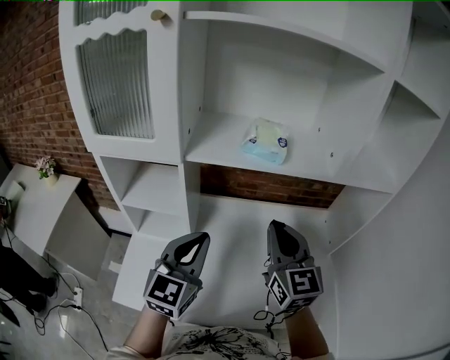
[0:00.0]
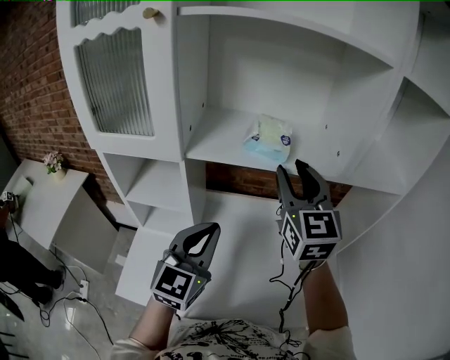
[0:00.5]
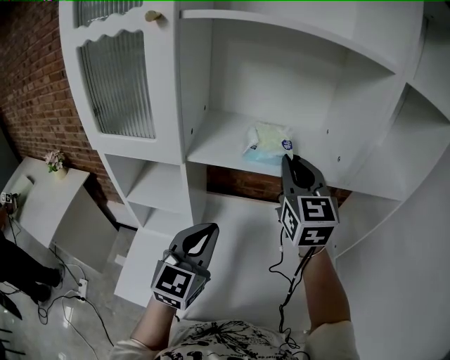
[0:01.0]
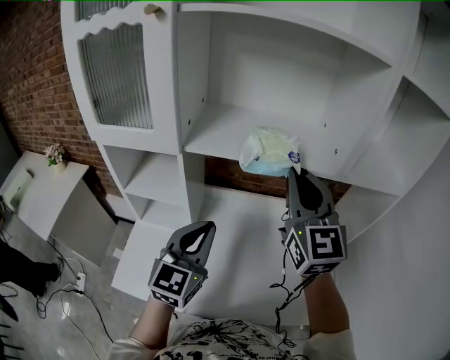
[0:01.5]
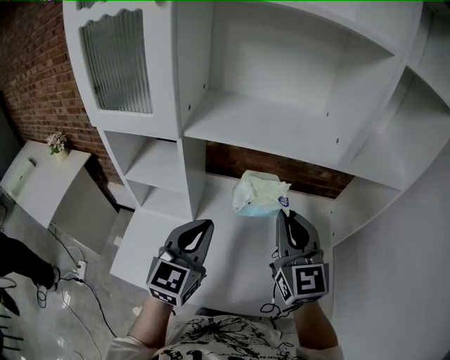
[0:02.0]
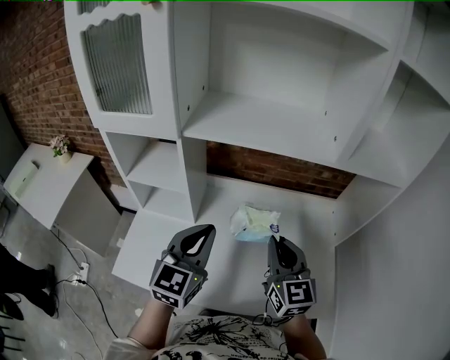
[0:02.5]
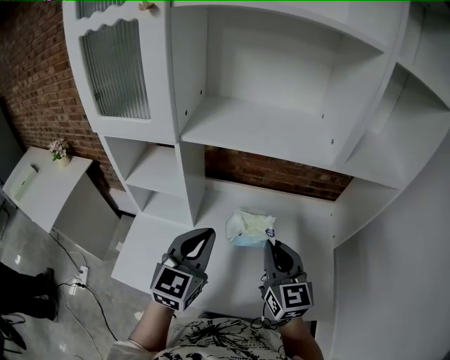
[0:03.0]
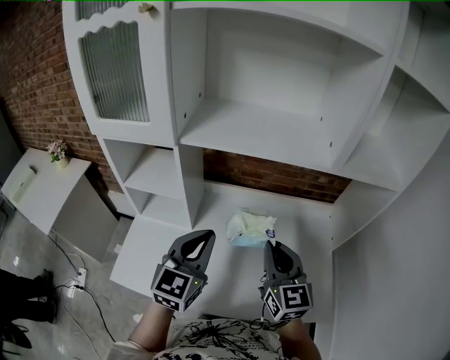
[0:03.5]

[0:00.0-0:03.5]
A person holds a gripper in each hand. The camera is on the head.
0.0 to 2.0 s: The right gripper goes forward and returns, roughly 10 cm each way, and opens and closes again.
2.0 to 3.5 s: The right gripper heads downward, covering roughly 10 cm.

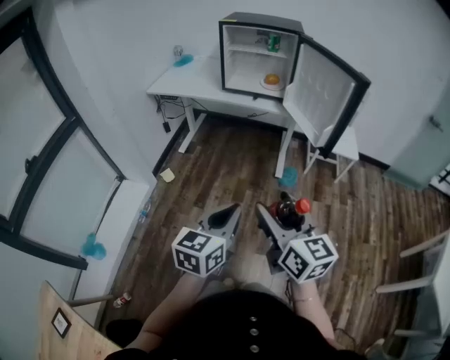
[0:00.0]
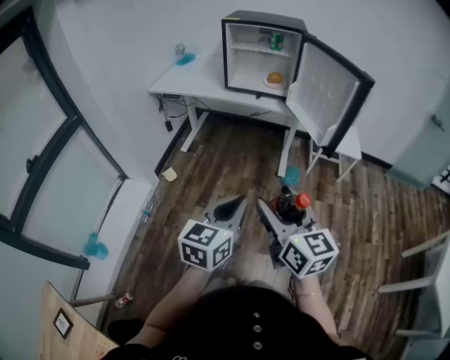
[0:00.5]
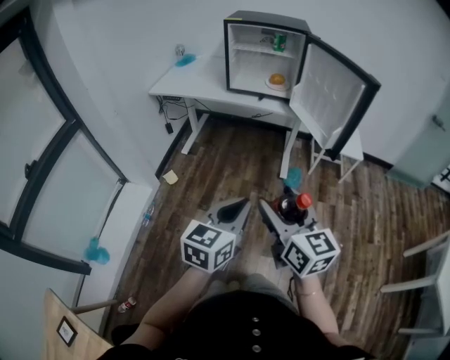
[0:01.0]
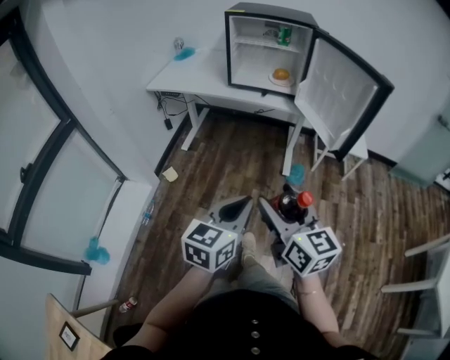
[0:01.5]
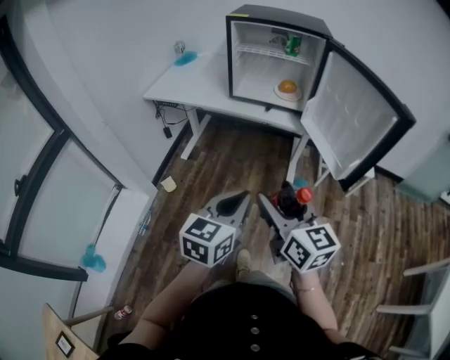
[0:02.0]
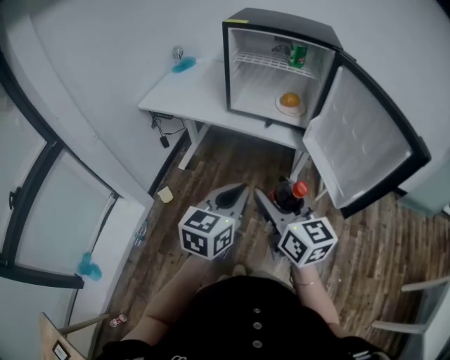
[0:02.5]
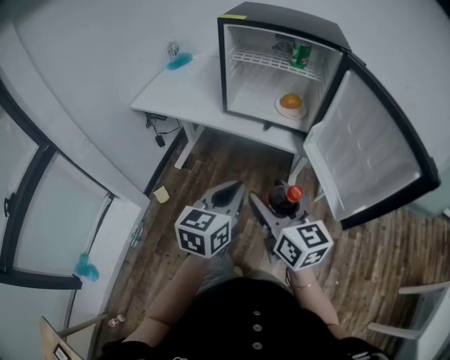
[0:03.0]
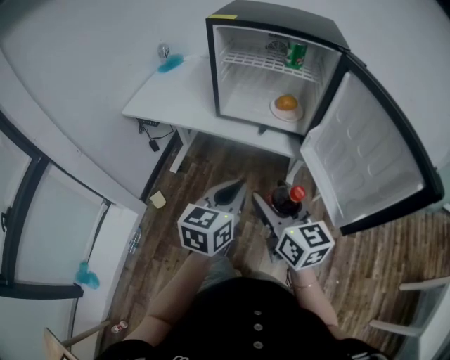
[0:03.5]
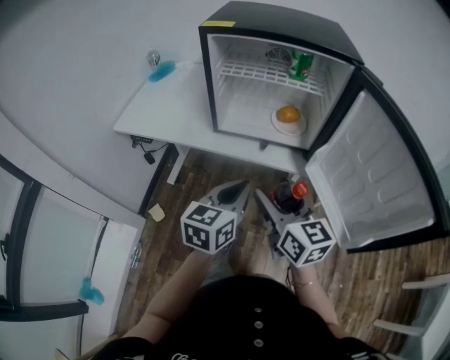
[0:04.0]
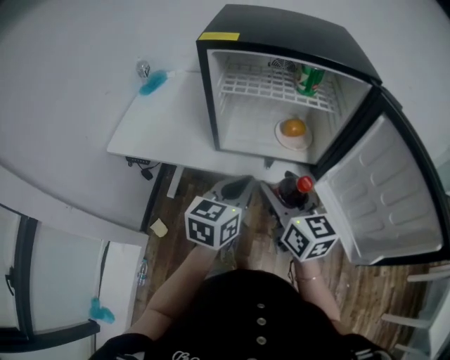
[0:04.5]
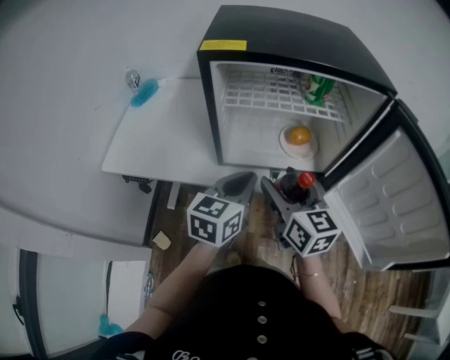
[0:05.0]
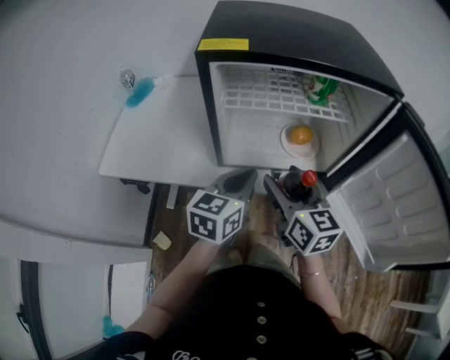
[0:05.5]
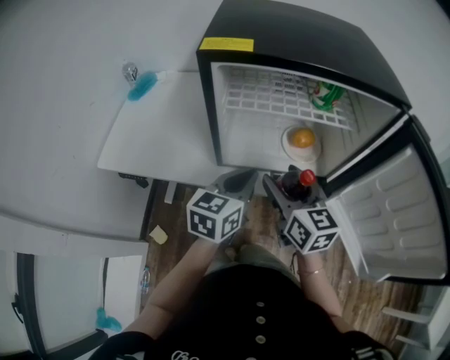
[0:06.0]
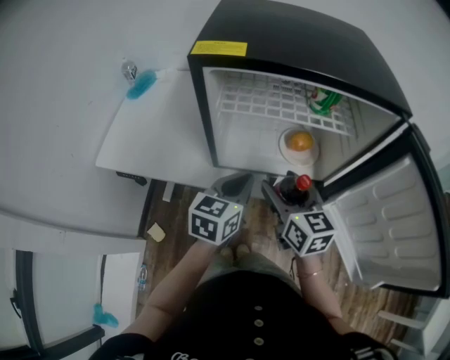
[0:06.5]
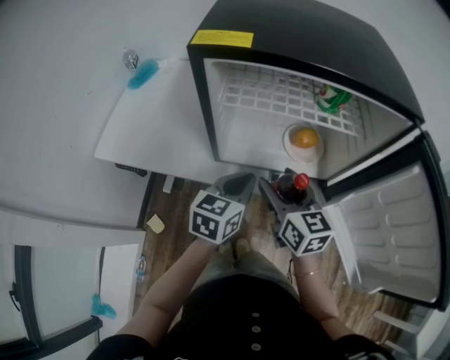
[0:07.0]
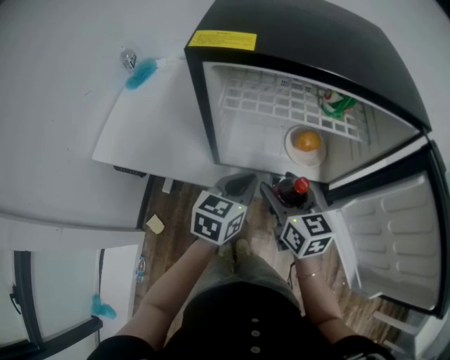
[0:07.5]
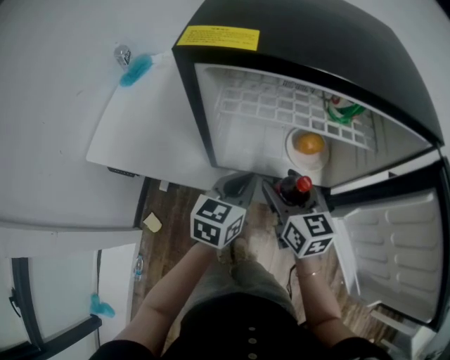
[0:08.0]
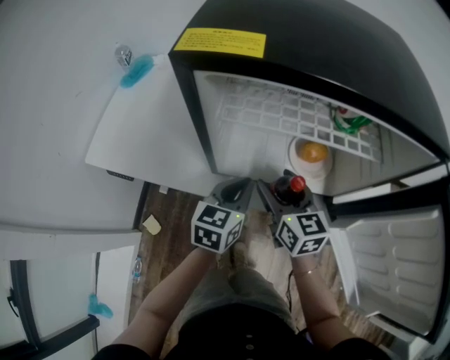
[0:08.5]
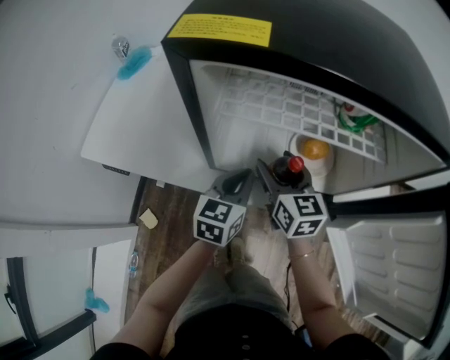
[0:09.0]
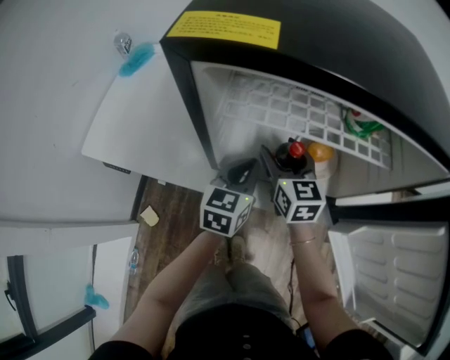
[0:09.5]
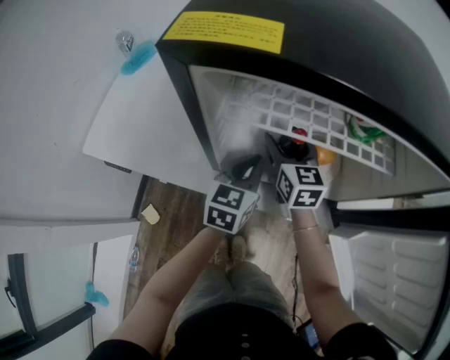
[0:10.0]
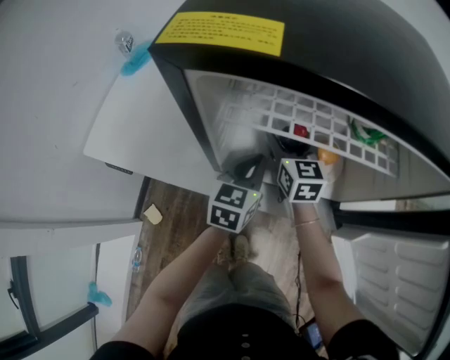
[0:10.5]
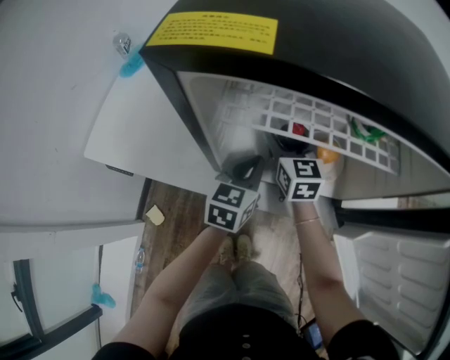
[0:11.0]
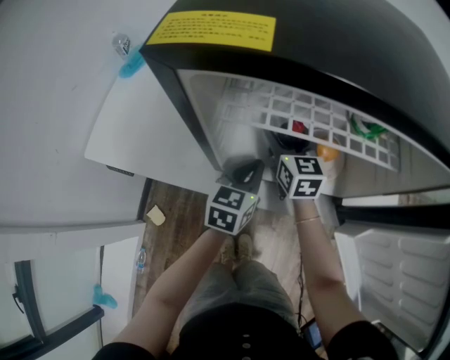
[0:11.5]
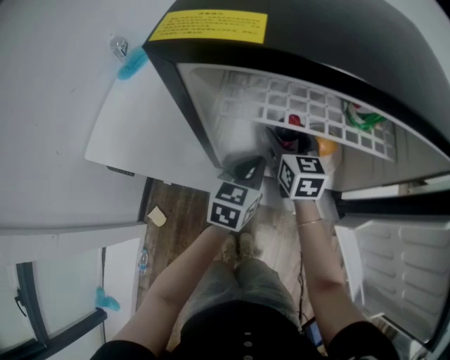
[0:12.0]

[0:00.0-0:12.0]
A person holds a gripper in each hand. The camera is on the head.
0.0 to 2.0 s: Both grippers move forward, about 20 cm.
2.0 to 4.0 s: Both grippers move forward, about 30 cm.
4.0 to 6.0 s: The two grippers go about 20 cm forward.
6.0 to 8.0 s: The left gripper is displaced downward by approximately 5 cm; the right gripper heads downward and forward, covering some 10 cm.
8.0 to 10.0 s: The left gripper heads forward, covering some 10 cm. Meanwhile the right gripper goes approximately 15 cm forward.
10.0 to 12.0 s: The grippers stay close to where they were, moving slightly.

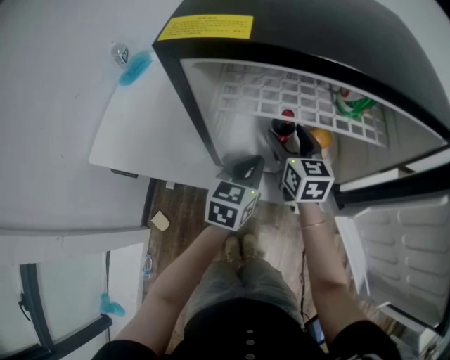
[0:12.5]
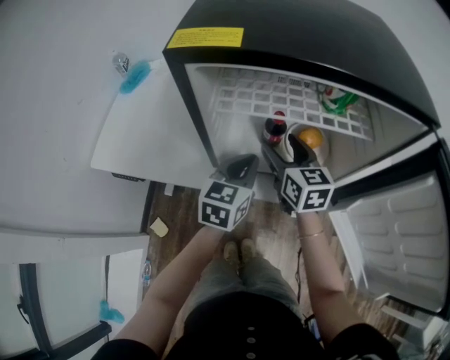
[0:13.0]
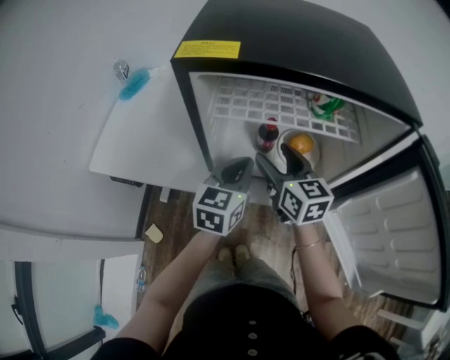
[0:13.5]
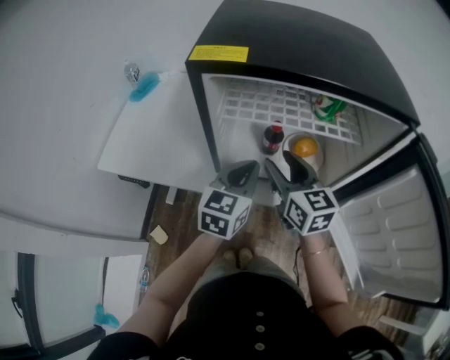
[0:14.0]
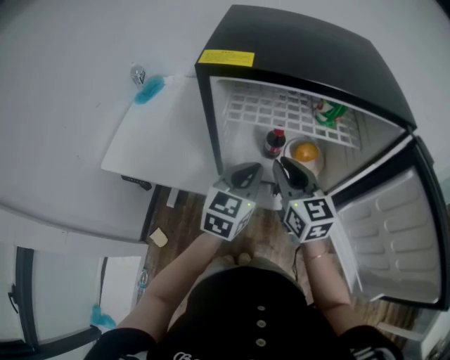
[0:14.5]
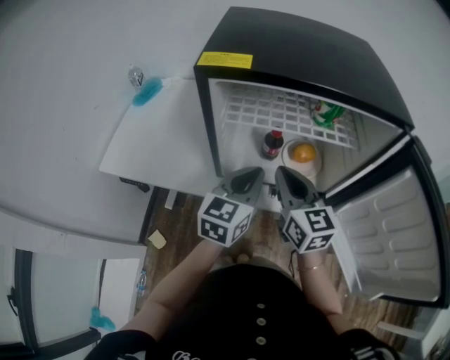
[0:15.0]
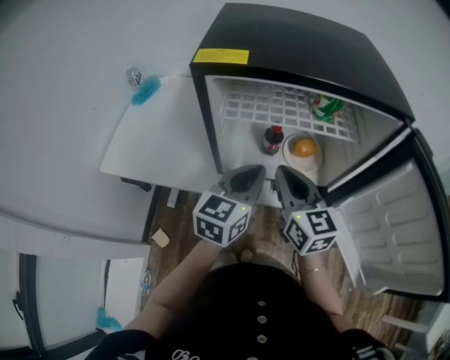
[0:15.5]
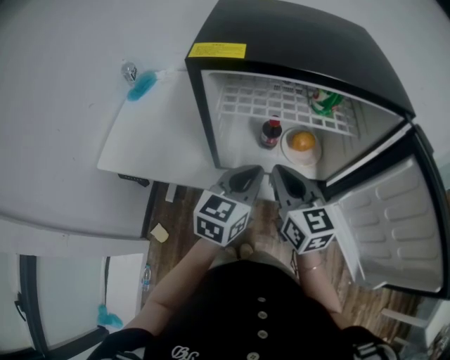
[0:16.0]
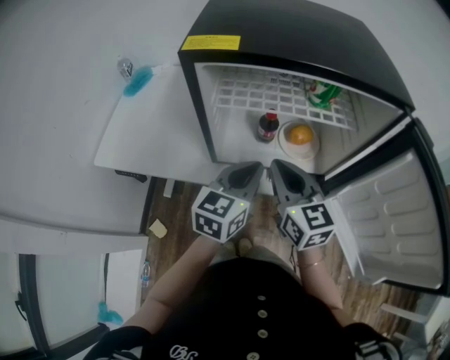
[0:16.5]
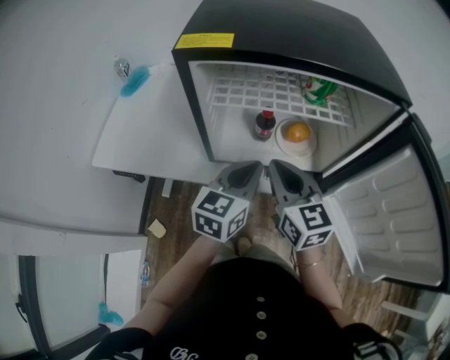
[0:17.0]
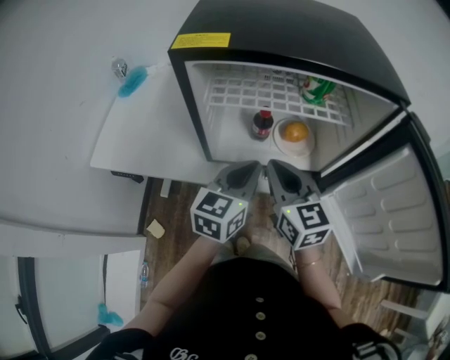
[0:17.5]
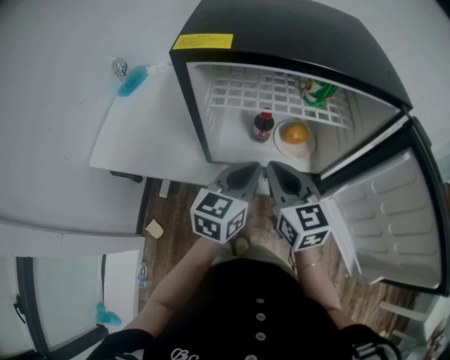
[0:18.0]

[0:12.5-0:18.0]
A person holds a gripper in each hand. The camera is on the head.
12.5 to 14.5 s: The right gripper goes approximately 15 cm backward and upward, and closes, while the left gripper shifts approximately 10 cm upward.
14.5 to 18.0 s: The grippers stay close to where they were, moving slightly.

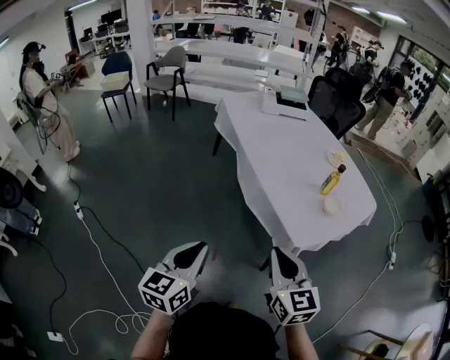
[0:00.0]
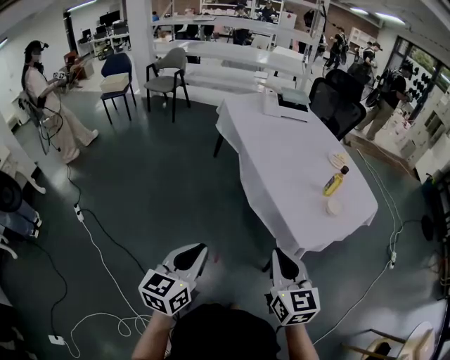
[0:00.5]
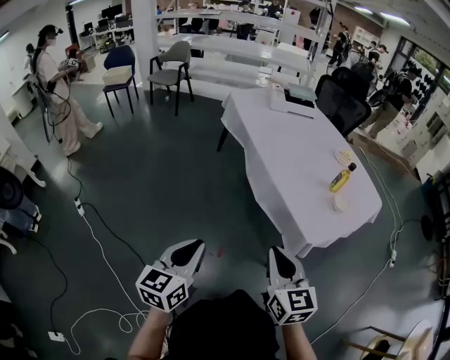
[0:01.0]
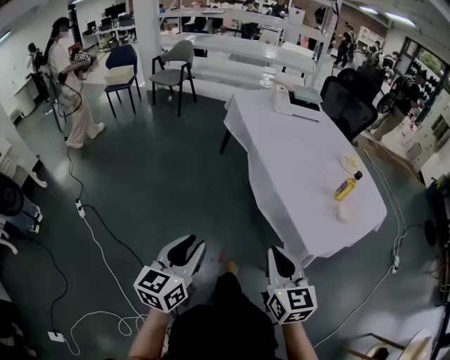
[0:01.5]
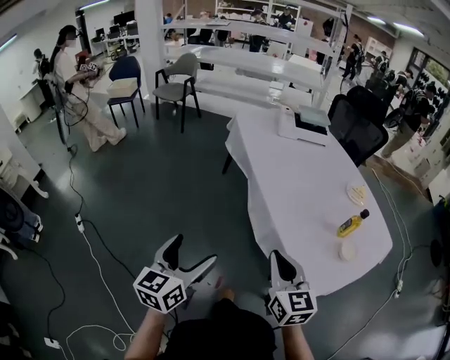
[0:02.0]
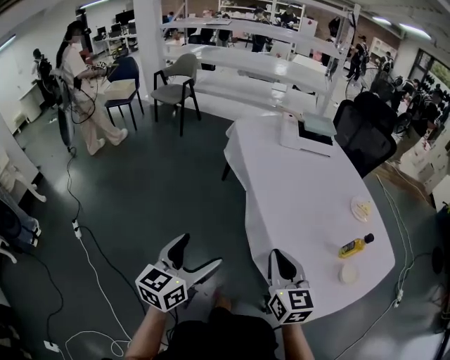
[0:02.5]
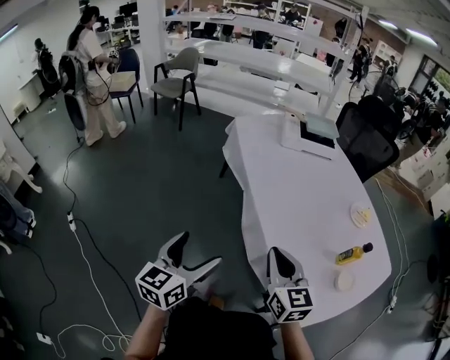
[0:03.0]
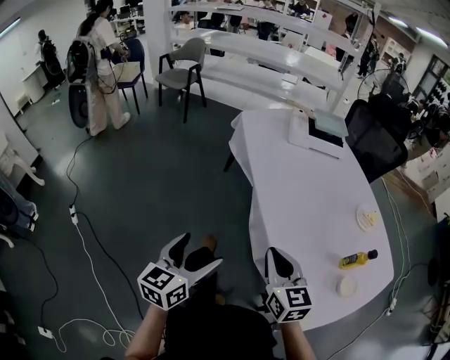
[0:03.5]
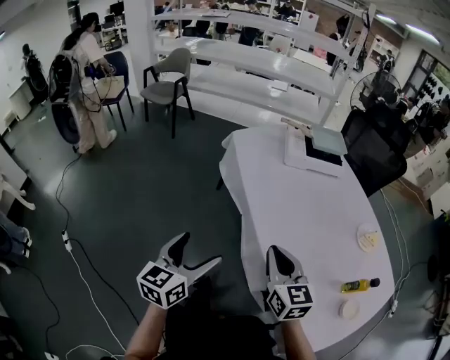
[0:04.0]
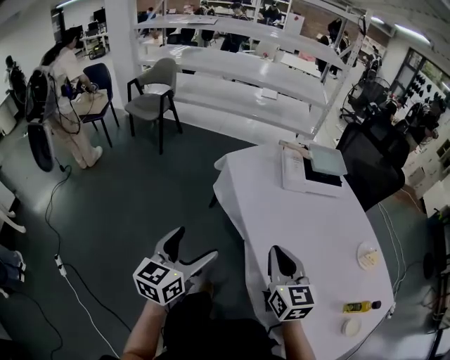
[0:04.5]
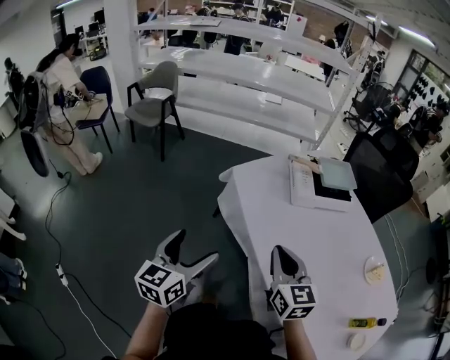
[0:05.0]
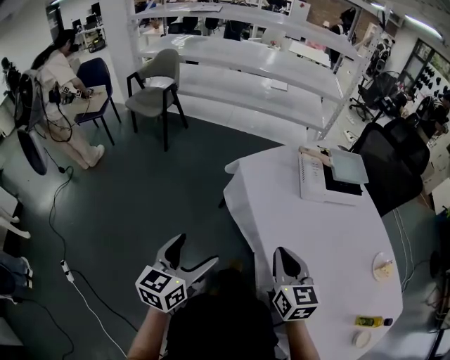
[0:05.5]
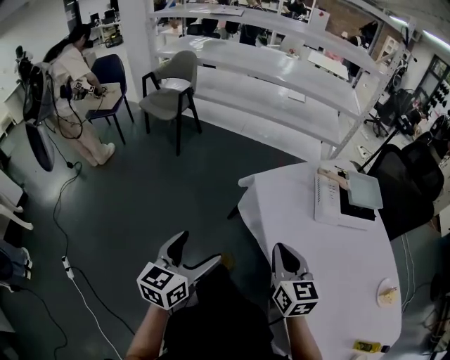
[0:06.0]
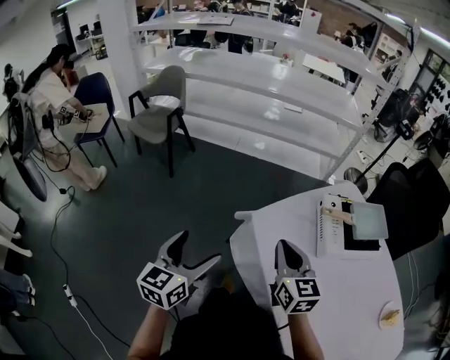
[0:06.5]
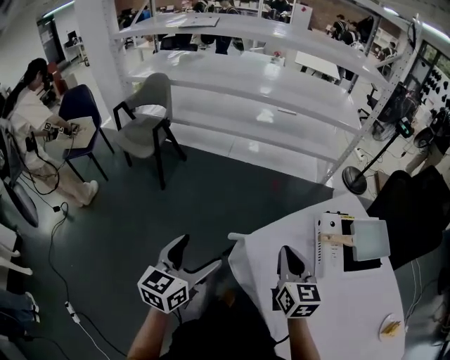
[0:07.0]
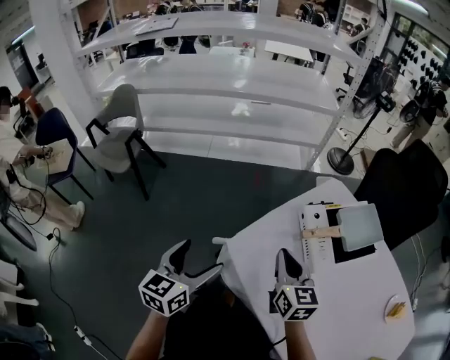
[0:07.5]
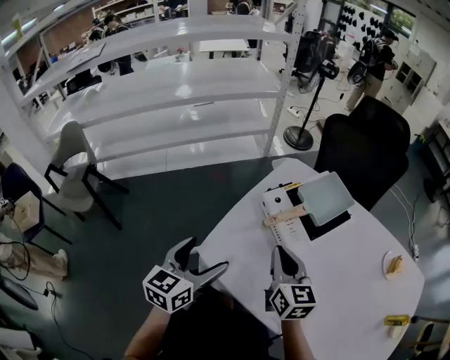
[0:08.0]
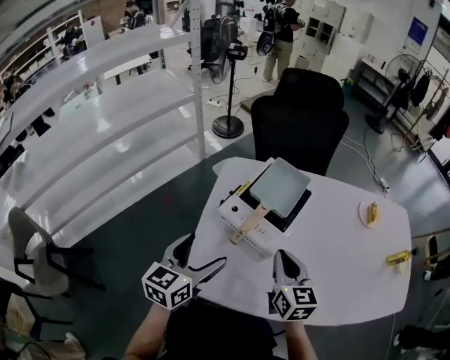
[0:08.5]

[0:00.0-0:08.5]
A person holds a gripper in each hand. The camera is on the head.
0.0 to 2.0 s: The grippers both shift forward by approximately 20 cm. The left gripper opens.
2.0 to 4.0 s: Both grippers move forward, approximately 30 cm.
4.0 to 6.5 s: The pair of grippers is taken forward and to the left, about 50 cm.
6.5 to 8.5 s: The right gripper moves some 25 cm, and changes its angle by some 60 degrees, while the left gripper ends up roughly 40 cm from where it was, and turns by roughly 60 degrees.
